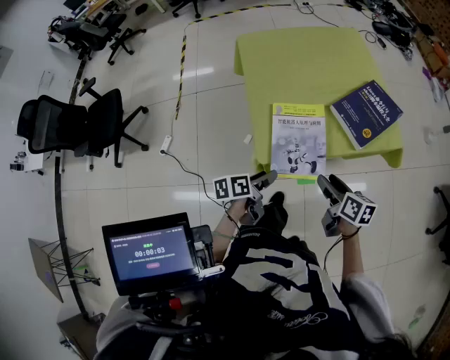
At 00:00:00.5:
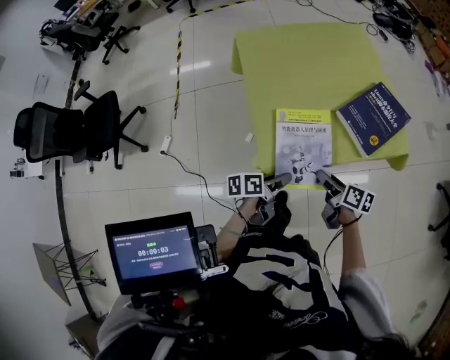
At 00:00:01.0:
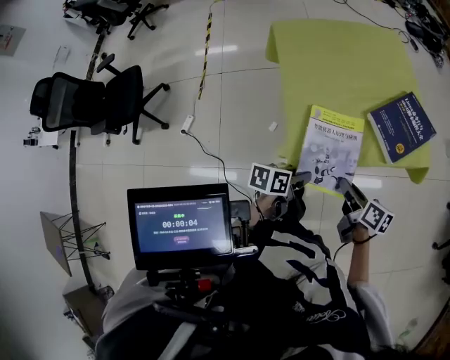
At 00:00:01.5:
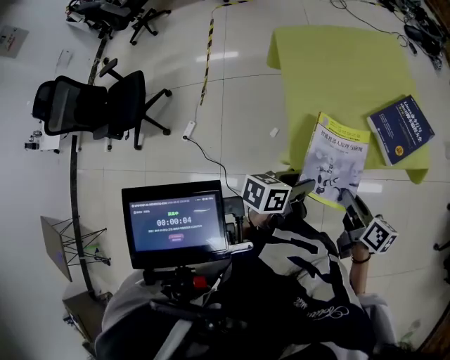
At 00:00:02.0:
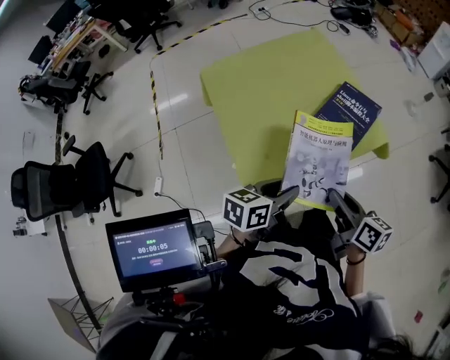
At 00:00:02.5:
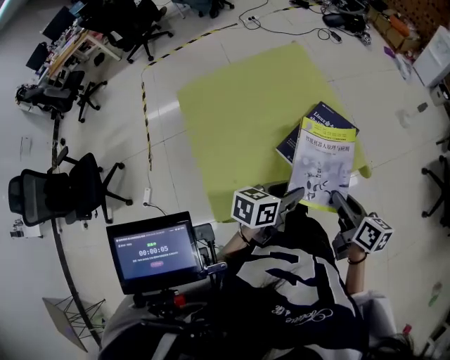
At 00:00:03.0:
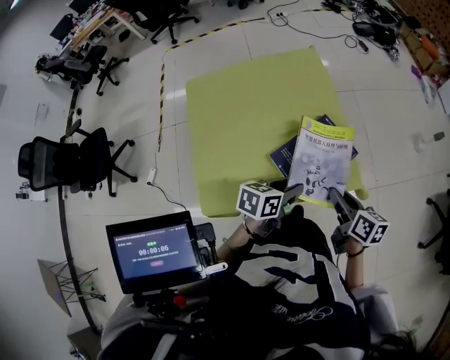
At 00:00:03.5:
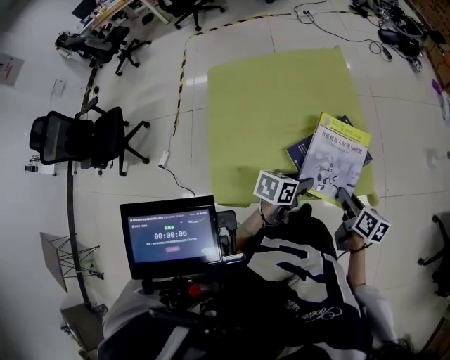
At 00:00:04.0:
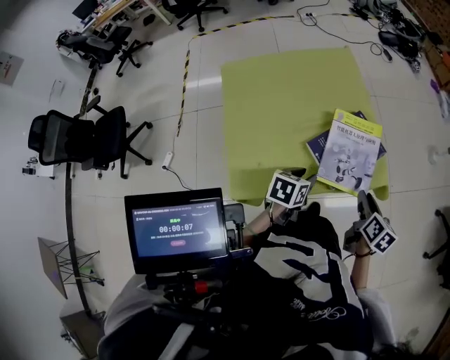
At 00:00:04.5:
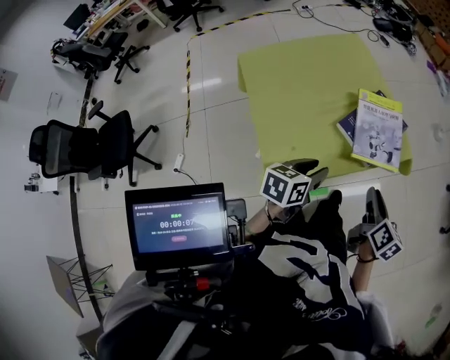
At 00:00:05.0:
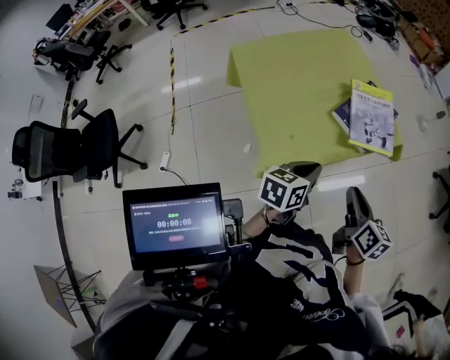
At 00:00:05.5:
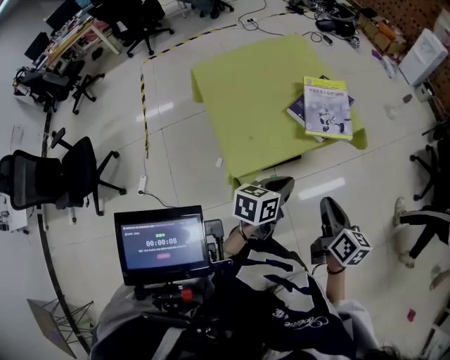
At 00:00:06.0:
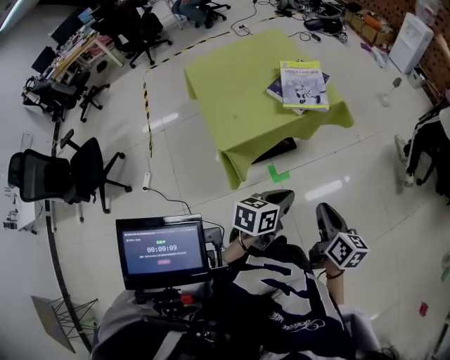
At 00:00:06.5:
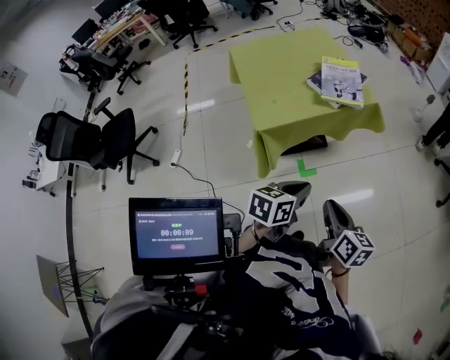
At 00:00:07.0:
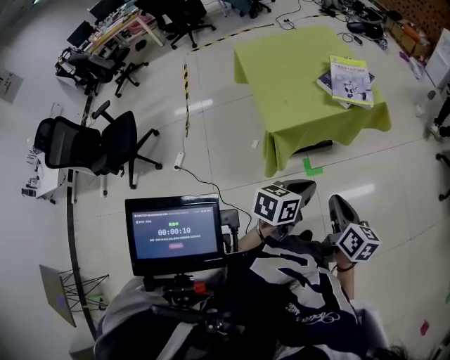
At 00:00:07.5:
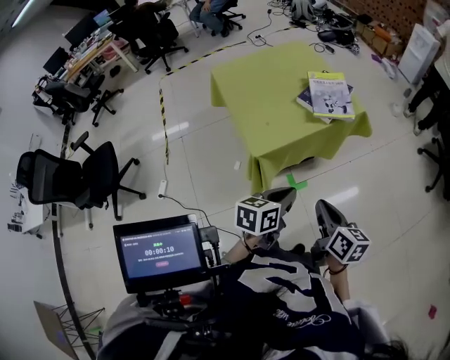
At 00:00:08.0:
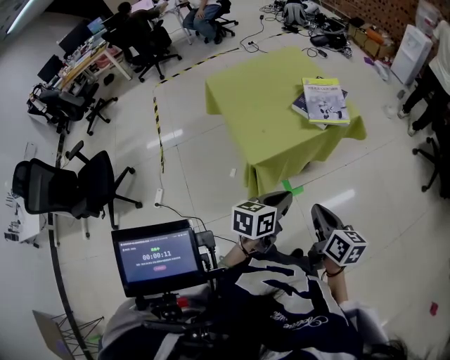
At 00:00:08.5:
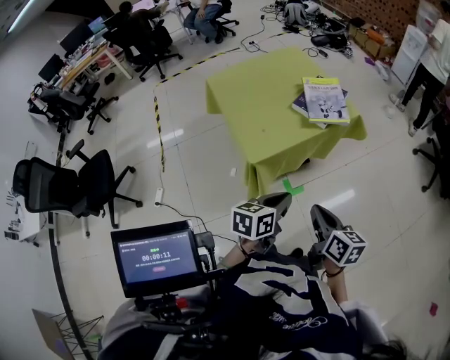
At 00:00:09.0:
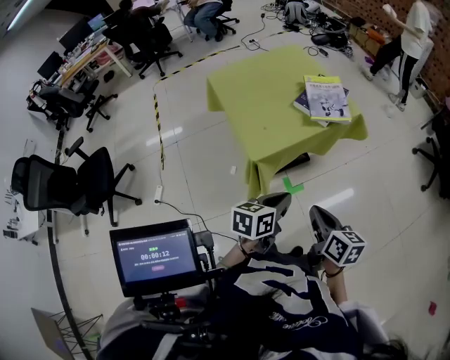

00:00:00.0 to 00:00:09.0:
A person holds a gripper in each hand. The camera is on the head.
00:00:00.0 to 00:00:02.0: The right gripper heads upward, covering roughly 10 cm, and closes its fingers; the left gripper goes approximately 20 cm upward, to the right and forward, and changes its angle by roughly 40 degrees.
00:00:02.0 to 00:00:04.5: The left gripper travels forward and back again, some 15 cm each way. Meanwhile the right gripper travels to the right by about 5 cm, travels forward and back again, some 20 cm each way, and turns by about 20 degrees.
00:00:04.5 to 00:00:07.0: The grippers both shift backward by about 30 cm. The left gripper closes; the right gripper closes.
00:00:07.0 to 00:00:09.0: The grippers both shift to the left by approximately 5 cm.

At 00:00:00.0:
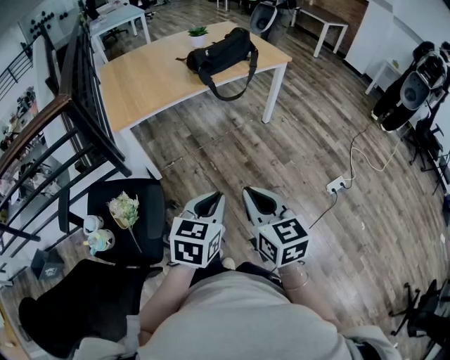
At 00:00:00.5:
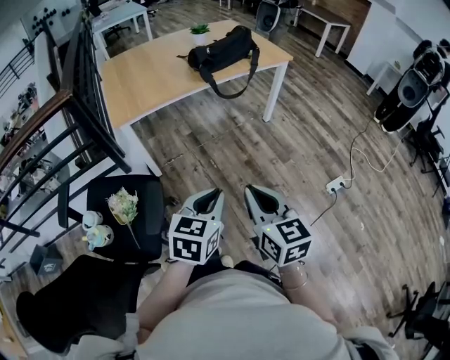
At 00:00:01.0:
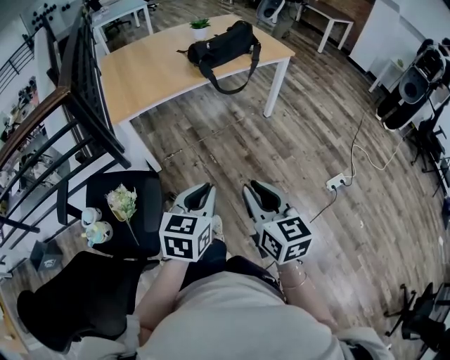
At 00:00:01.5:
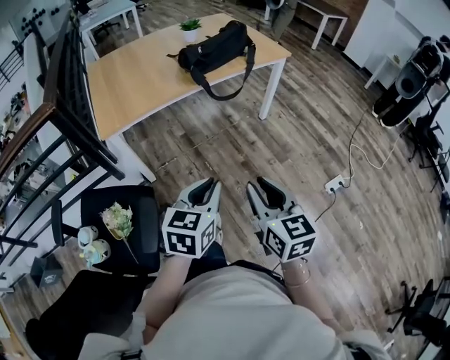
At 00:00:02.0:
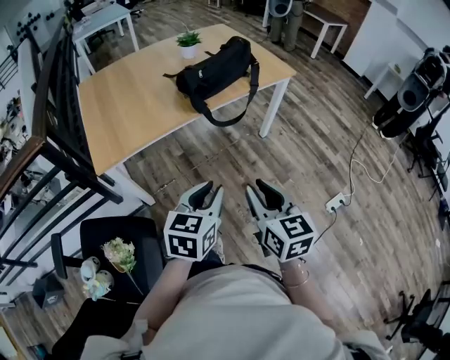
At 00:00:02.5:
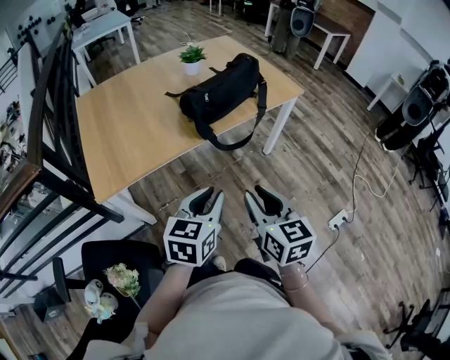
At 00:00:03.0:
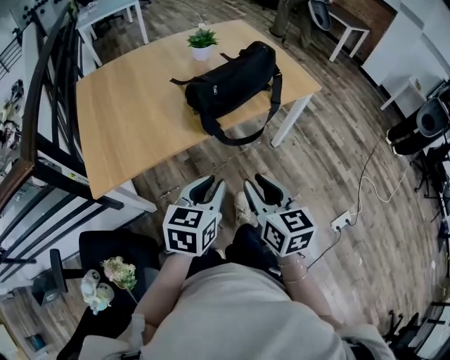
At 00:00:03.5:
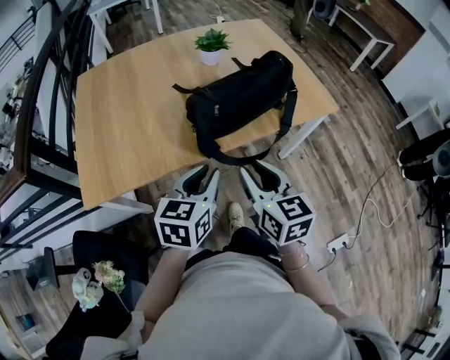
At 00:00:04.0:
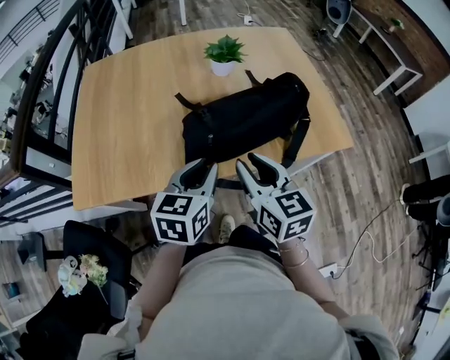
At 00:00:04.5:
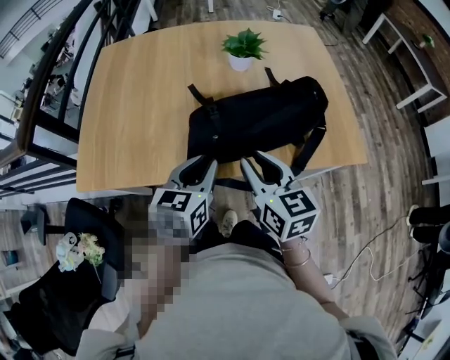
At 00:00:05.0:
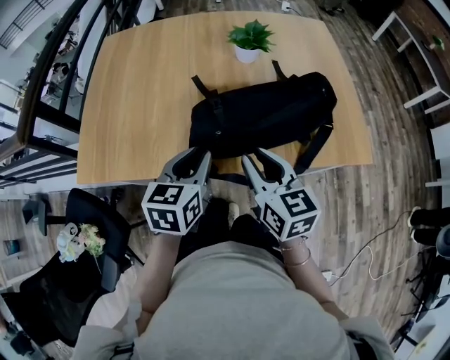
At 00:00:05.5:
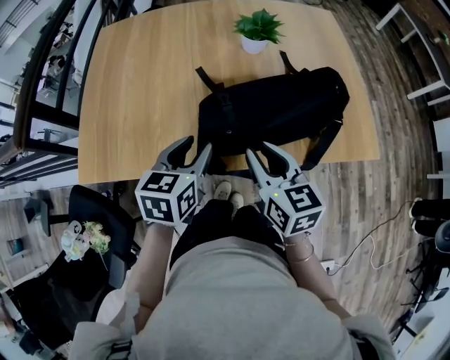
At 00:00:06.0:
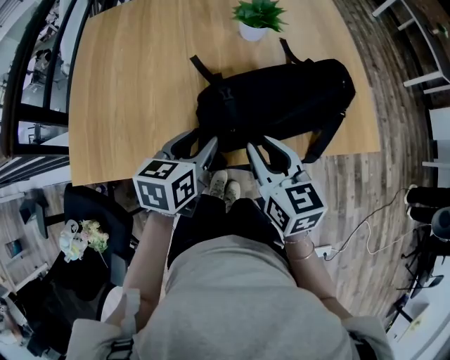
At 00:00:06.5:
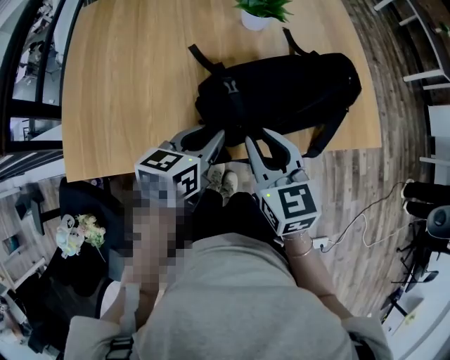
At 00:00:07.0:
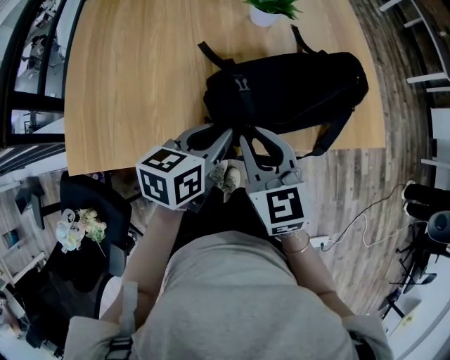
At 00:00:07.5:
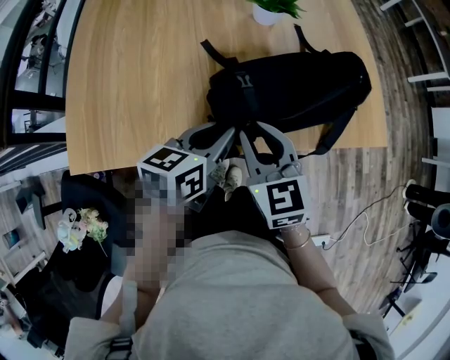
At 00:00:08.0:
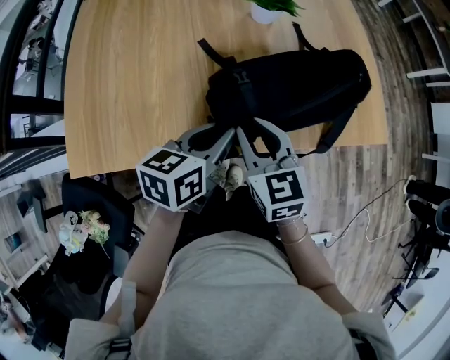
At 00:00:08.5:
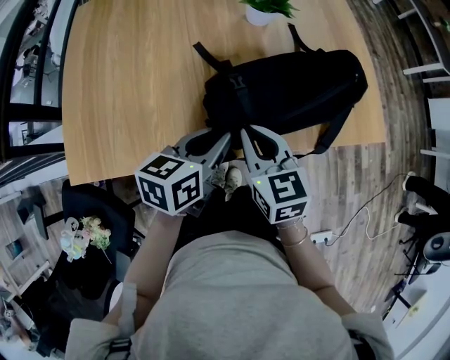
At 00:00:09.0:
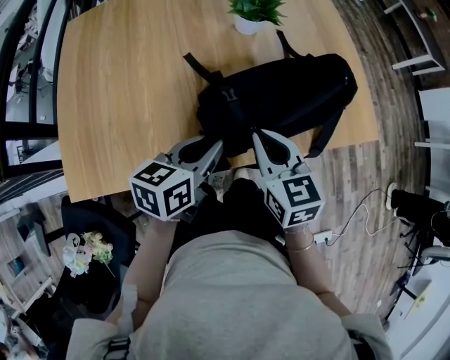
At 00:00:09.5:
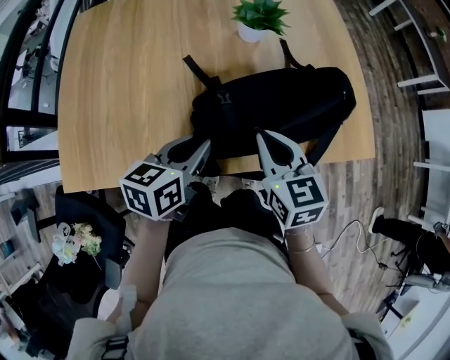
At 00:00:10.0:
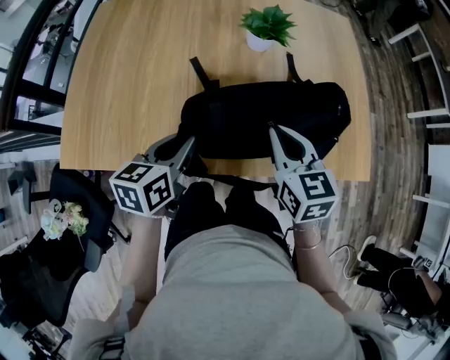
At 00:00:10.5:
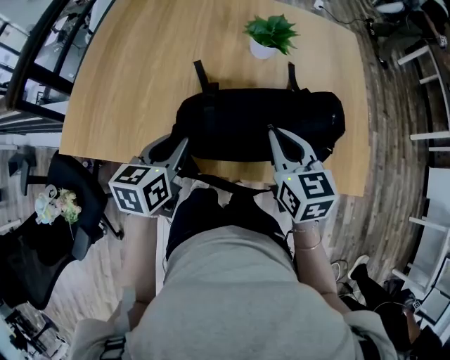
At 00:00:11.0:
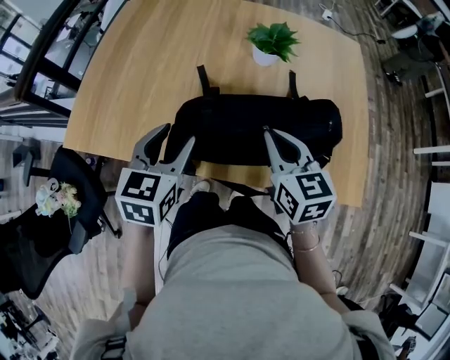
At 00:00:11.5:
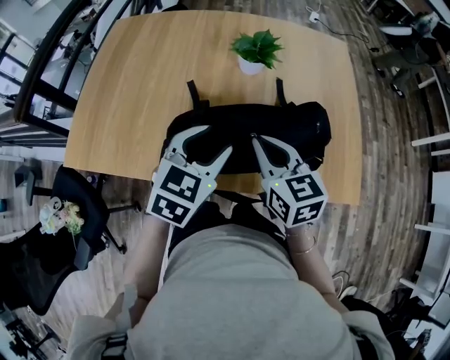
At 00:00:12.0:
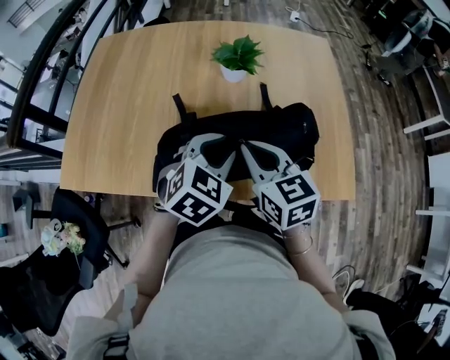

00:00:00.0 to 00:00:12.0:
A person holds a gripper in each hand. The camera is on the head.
00:00:00.0 to 00:00:02.0: Both grippers travel together forward, some 25 cm. The right gripper opens.
00:00:02.0 to 00:00:04.0: The pair of grippers is taken forward, some 40 cm. The left gripper rotates roughly 20 degrees. Meanwhile the right gripper changes its angle by approximately 20 degrees.
00:00:04.0 to 00:00:06.0: The right gripper is displaced forward by approximately 5 cm; the left gripper shifts approximately 10 cm forward and downward, and opens up.
00:00:06.0 to 00:00:08.0: The right gripper travels to the left by some 5 cm; the left gripper closes.
00:00:08.0 to 00:00:10.0: The right gripper travels to the right and forward by roughly 15 cm, and closes its fingers.
00:00:10.0 to 00:00:12.0: The left gripper goes about 20 cm to the right, rotates around the line of its fingers by roughly 50 degrees, clockwise from behind, and opens, then closes once more.

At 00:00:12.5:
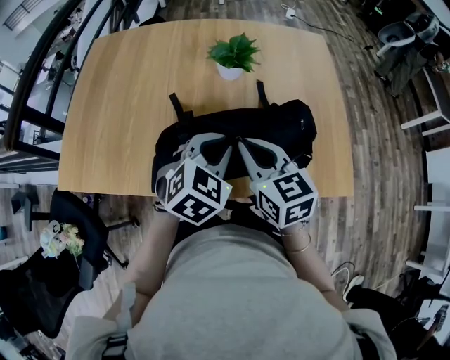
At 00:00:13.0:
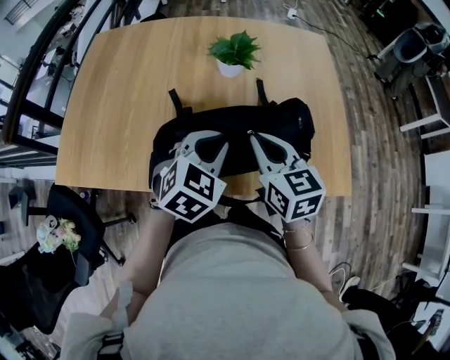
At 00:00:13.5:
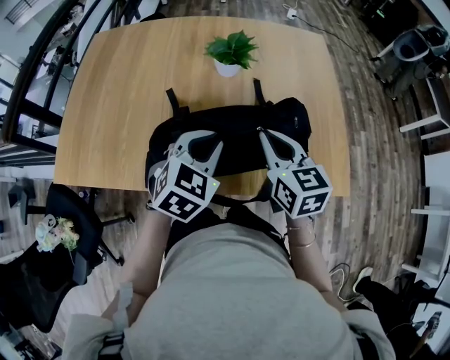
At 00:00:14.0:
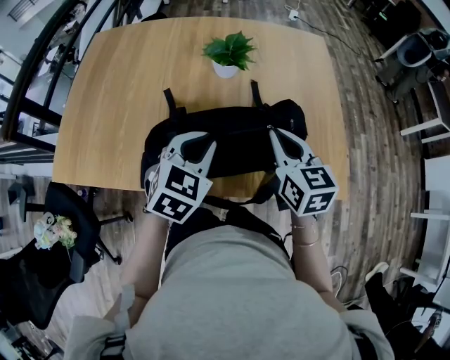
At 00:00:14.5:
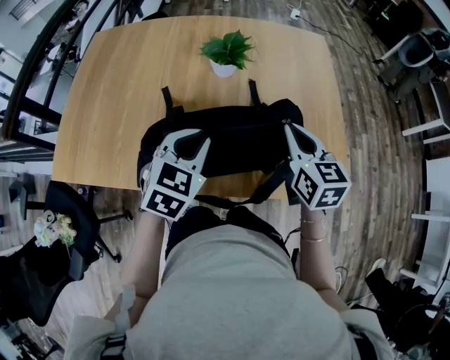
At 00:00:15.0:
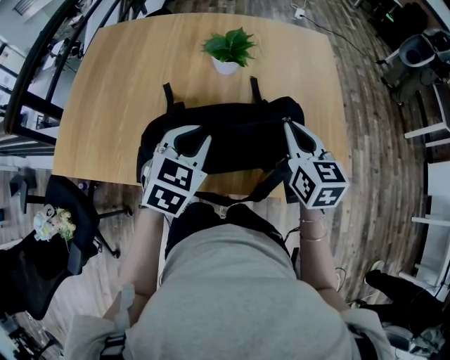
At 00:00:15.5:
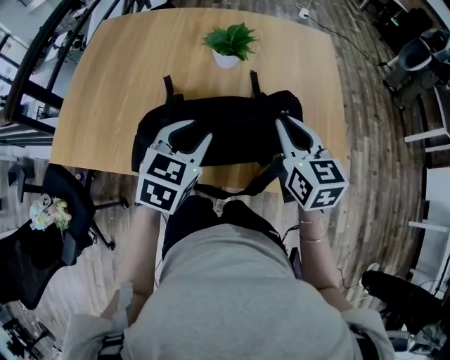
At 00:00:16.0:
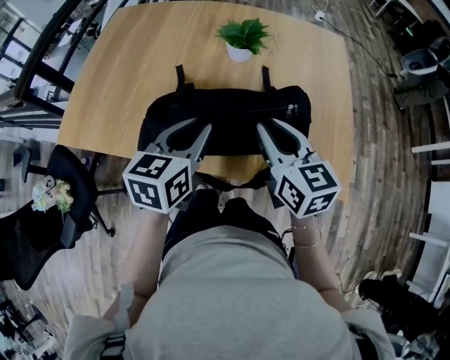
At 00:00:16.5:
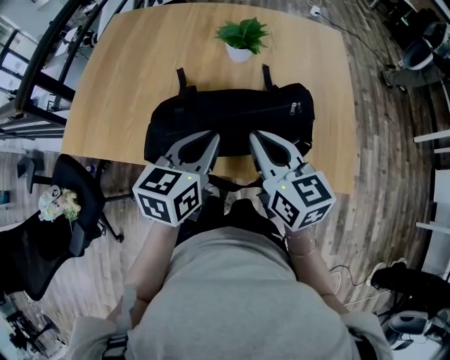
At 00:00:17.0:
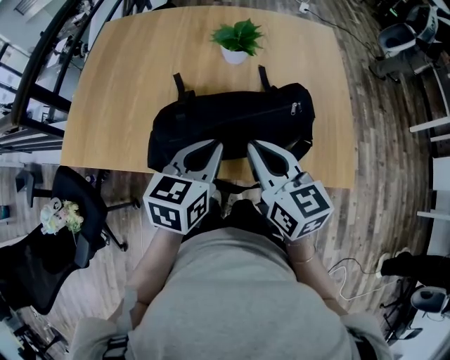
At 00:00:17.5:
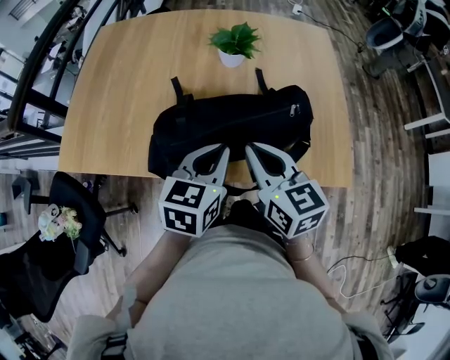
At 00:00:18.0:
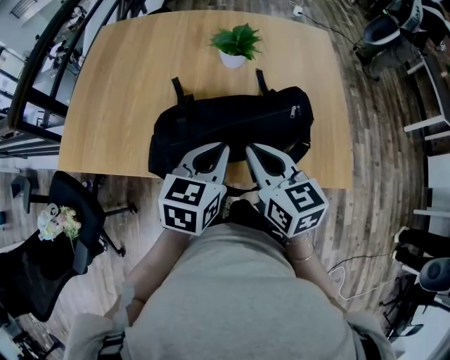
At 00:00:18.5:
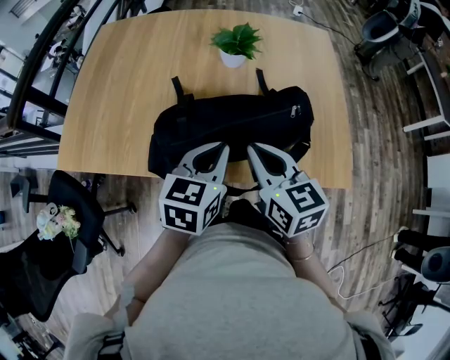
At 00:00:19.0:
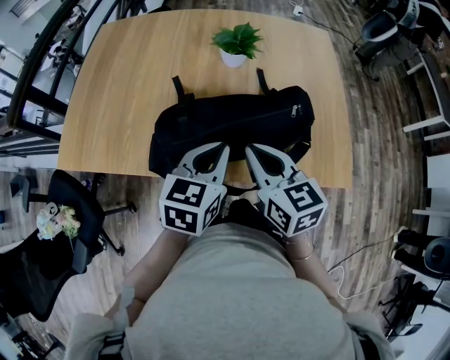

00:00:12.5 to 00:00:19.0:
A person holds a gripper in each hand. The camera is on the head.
00:00:12.5 to 00:00:14.5: The right gripper shifts roughly 15 cm to the right.
00:00:14.5 to 00:00:17.0: The right gripper moves to the left and backward, approximately 15 cm, while the left gripper travels backward by roughly 5 cm, and changes its angle by approximately 30 degrees.
00:00:17.0 to 00:00:19.0: There are only small adjustments of the grippers.
